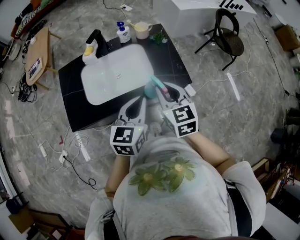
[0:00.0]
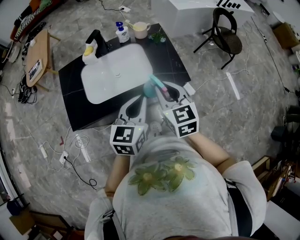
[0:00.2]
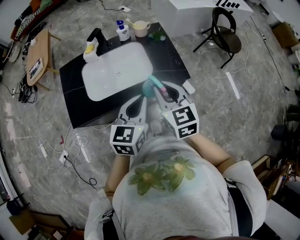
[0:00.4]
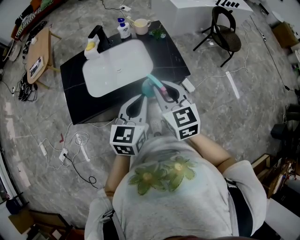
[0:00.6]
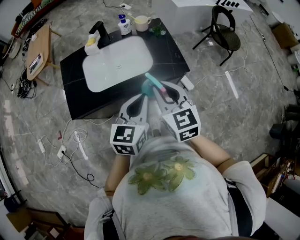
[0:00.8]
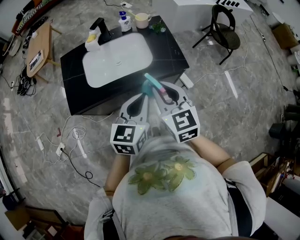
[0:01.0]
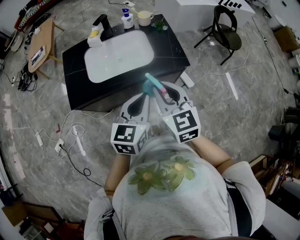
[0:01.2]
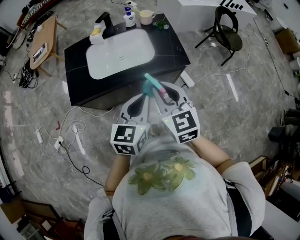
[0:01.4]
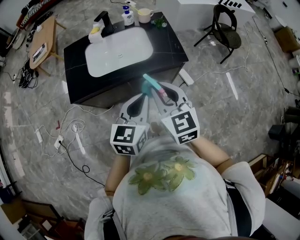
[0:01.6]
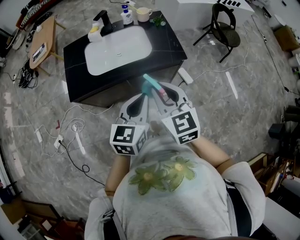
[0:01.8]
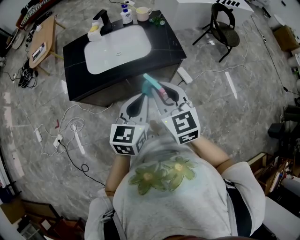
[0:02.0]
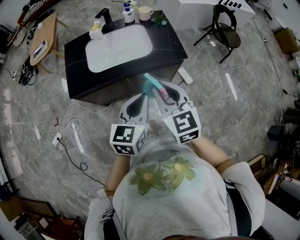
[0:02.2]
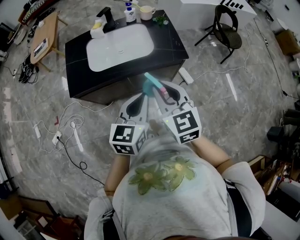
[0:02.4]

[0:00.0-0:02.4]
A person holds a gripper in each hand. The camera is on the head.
0:00.0 to 0:01.2: The left gripper moves backward, roughly 10 cm, while the right gripper travels backward and upward by about 15 cm.
0:01.2 to 0:02.4: The two grippers go some 5 cm backward.

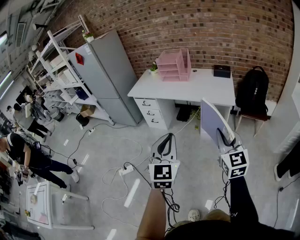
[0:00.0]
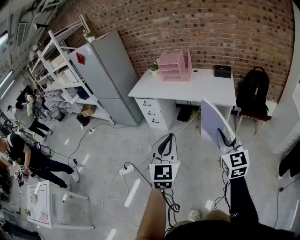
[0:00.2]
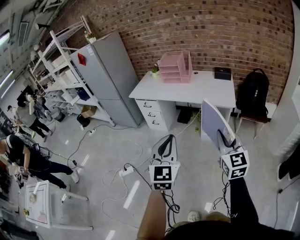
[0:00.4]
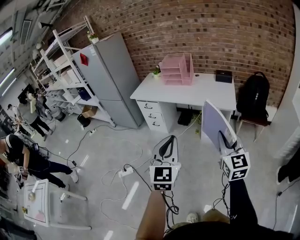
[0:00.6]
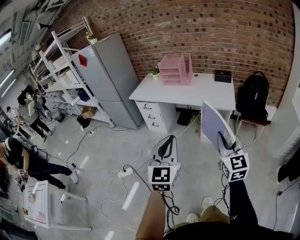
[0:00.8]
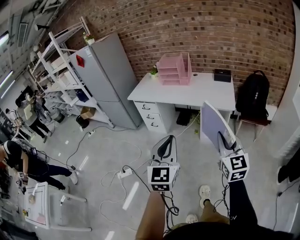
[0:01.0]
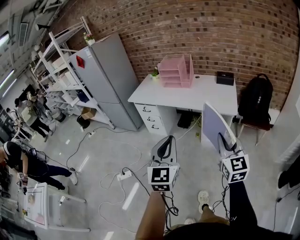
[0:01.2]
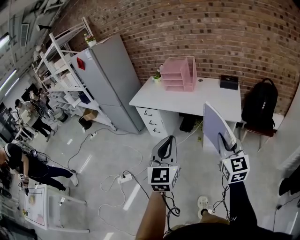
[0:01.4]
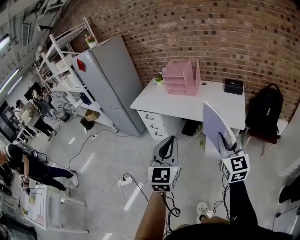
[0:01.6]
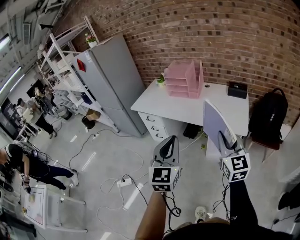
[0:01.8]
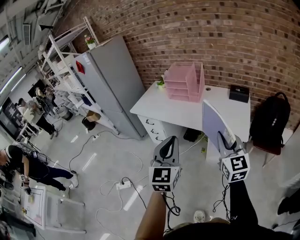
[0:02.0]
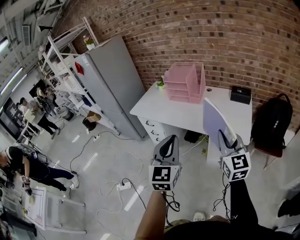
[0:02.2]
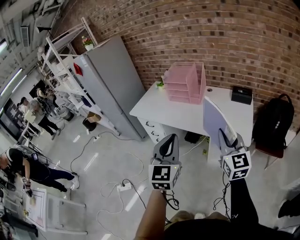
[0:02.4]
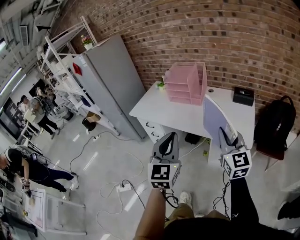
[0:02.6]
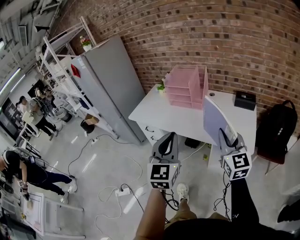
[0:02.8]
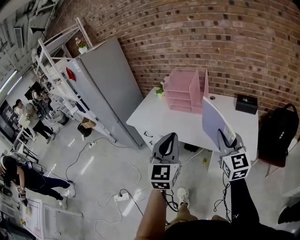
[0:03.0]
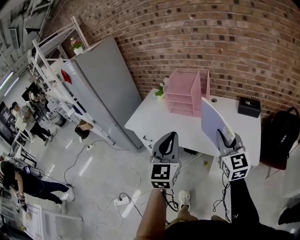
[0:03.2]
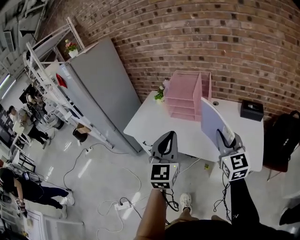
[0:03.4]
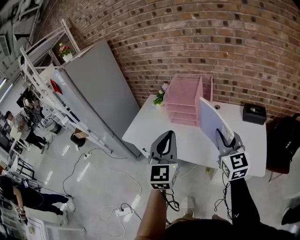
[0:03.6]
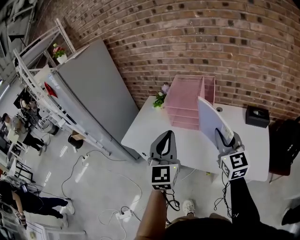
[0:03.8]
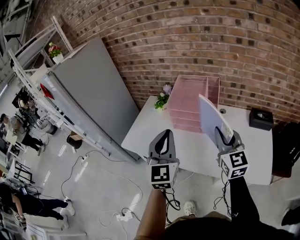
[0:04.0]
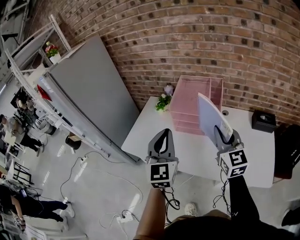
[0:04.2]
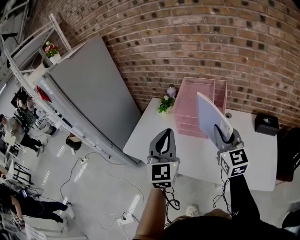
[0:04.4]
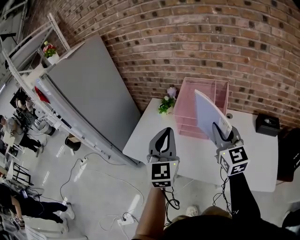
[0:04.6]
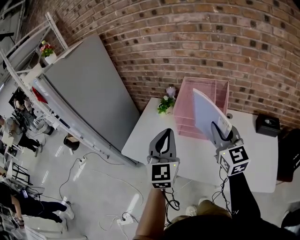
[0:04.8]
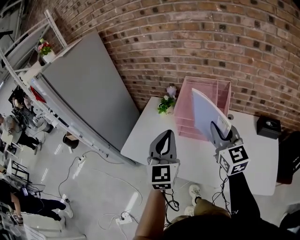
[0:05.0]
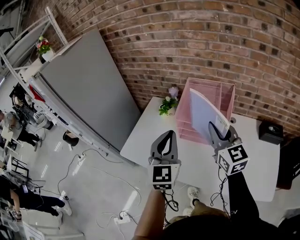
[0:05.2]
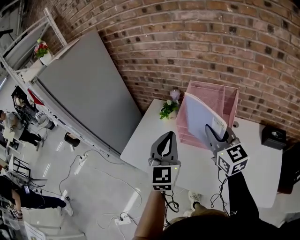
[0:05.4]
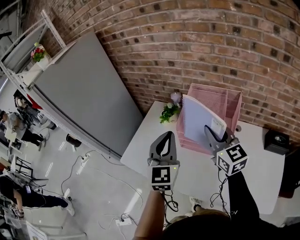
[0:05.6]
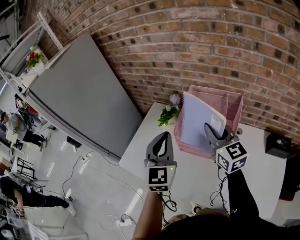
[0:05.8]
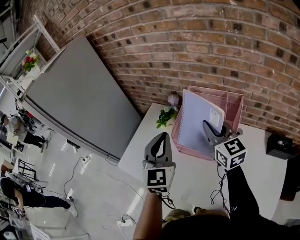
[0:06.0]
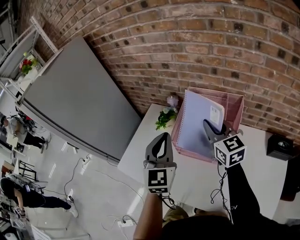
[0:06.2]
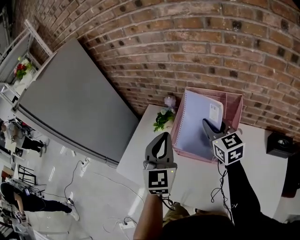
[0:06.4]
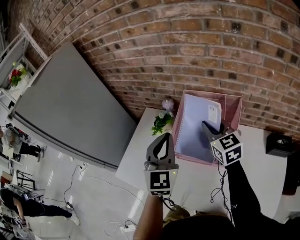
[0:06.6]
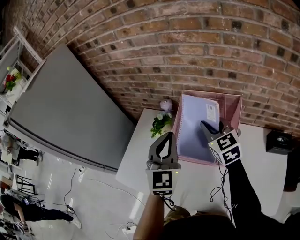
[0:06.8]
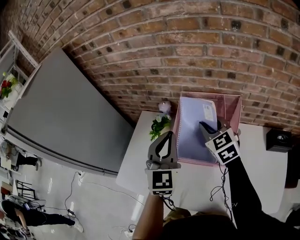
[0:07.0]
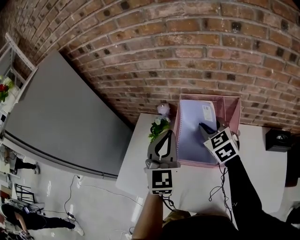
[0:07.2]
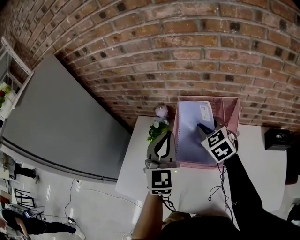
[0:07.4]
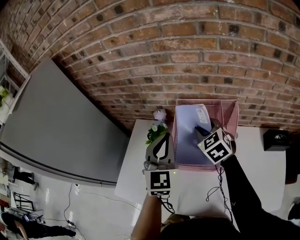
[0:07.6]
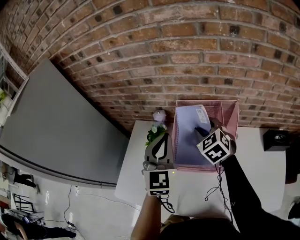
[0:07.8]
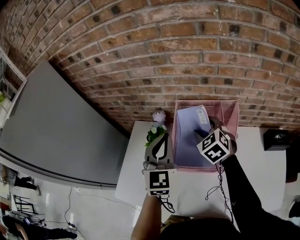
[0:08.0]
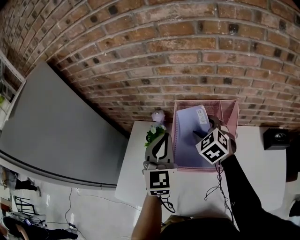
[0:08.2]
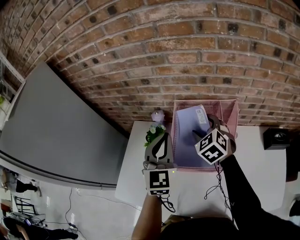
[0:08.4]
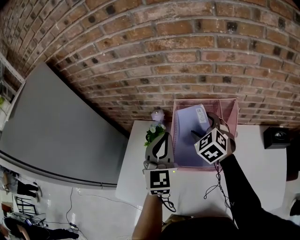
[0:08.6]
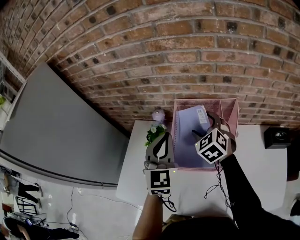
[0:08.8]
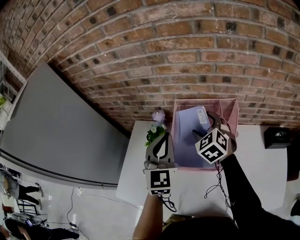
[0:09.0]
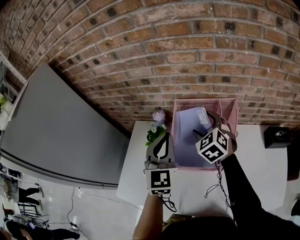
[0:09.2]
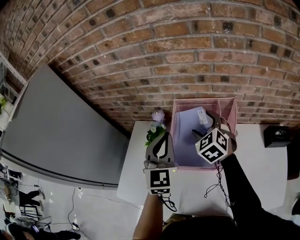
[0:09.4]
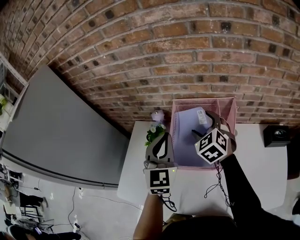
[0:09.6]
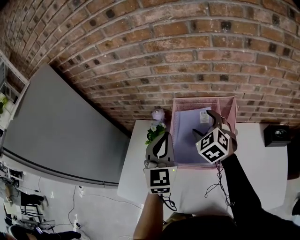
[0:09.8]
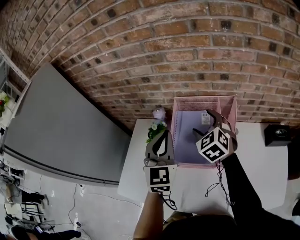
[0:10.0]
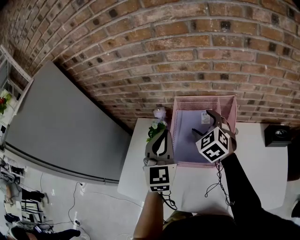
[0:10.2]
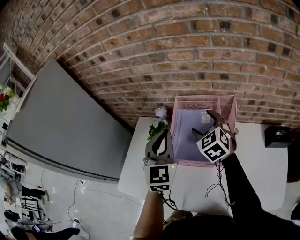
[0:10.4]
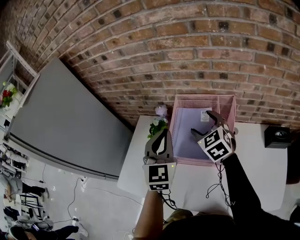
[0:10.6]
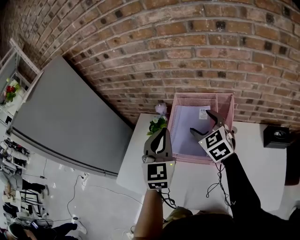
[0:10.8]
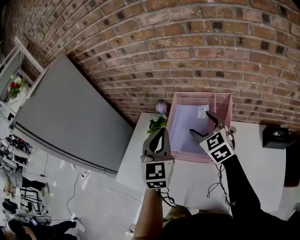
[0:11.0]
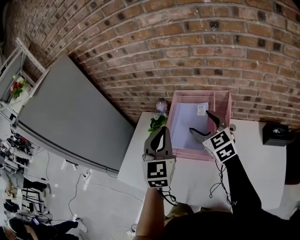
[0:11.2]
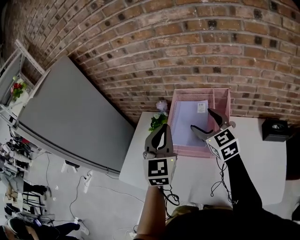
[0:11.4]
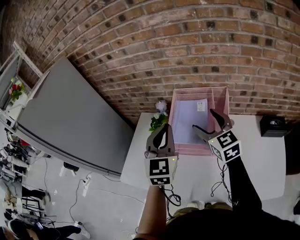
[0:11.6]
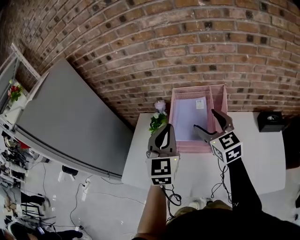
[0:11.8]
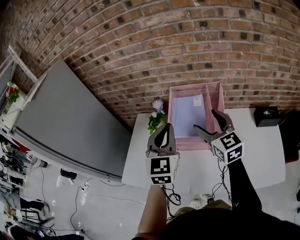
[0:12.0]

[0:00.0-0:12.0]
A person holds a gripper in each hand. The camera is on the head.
0:00.0 to 0:01.6: Both grippers move forward, roughly 20 cm.
0:01.6 to 0:03.0: Both grippers move forward, some 25 cm.
0:03.0 to 0:04.4: Both grippers move forward, about 35 cm.
0:04.4 to 0:06.0: Both grippers travel together forward, roughly 20 cm.
0:06.0 to 0:07.6: The right gripper travels forward and downward by approximately 15 cm, and swivels approximately 40 degrees; the left gripper goes some 10 cm forward.
0:07.6 to 0:09.0: The right gripper opens.
0:09.0 to 0:10.4: The grippers move only a little.
0:10.4 to 0:12.0: The right gripper goes about 15 cm backward and upward, and rotates about 30 degrees, while the left gripper is displaced backward by roughly 10 cm.

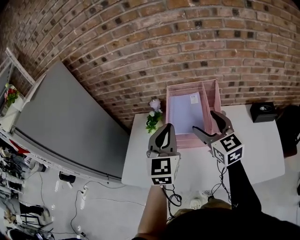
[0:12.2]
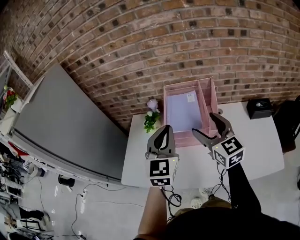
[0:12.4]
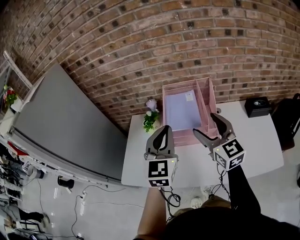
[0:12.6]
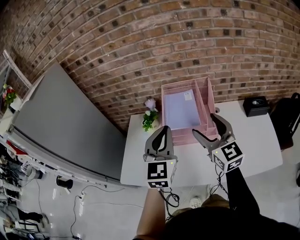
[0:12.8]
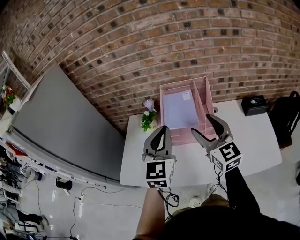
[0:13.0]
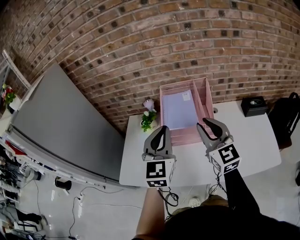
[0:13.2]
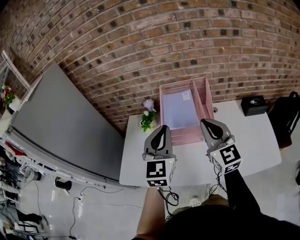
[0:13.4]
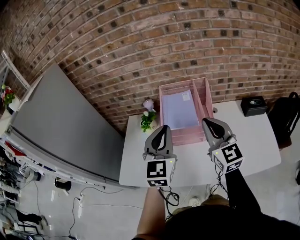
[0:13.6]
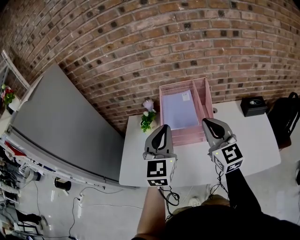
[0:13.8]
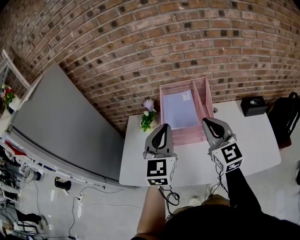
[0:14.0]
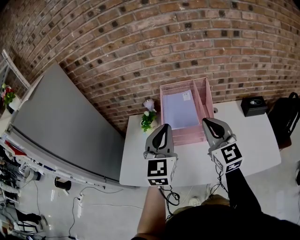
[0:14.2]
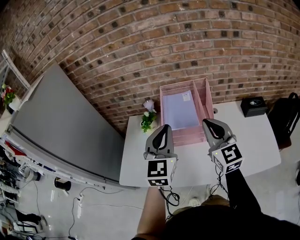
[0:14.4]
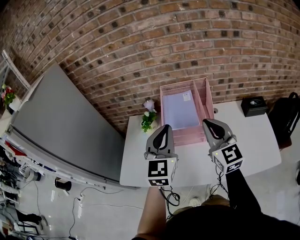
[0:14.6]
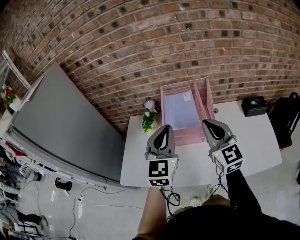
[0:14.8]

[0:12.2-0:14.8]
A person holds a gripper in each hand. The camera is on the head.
0:12.2 to 0:13.4: The right gripper is displaced backward by approximately 5 cm, and closes its fingers.
0:13.4 to 0:14.8: The two grippers keep their place.

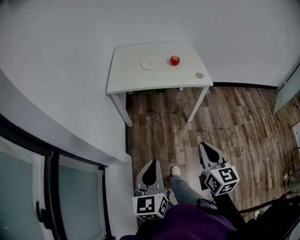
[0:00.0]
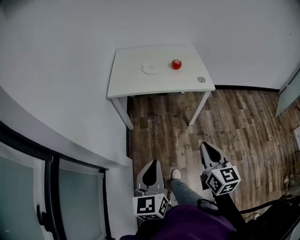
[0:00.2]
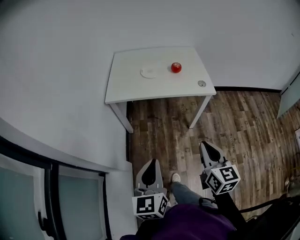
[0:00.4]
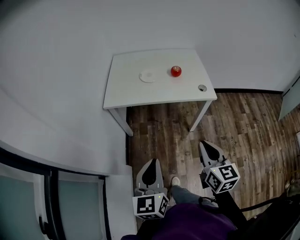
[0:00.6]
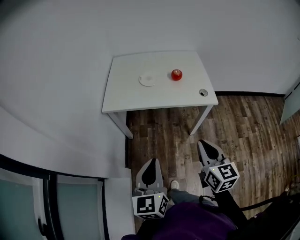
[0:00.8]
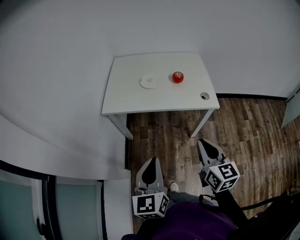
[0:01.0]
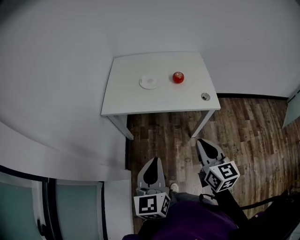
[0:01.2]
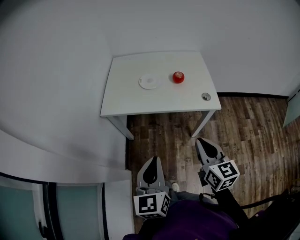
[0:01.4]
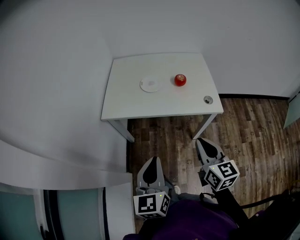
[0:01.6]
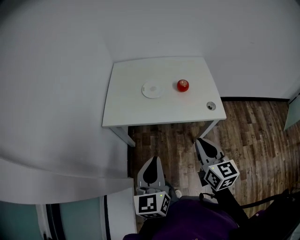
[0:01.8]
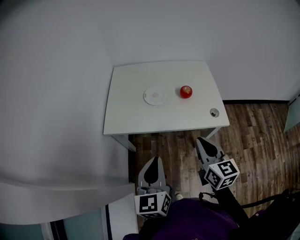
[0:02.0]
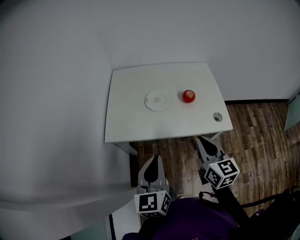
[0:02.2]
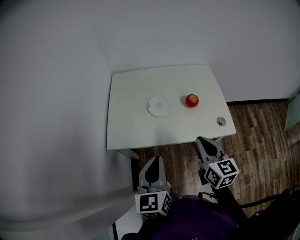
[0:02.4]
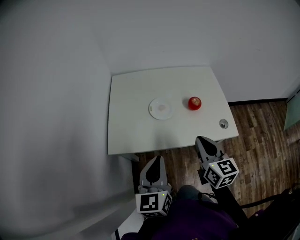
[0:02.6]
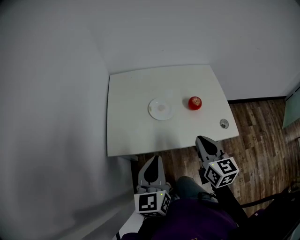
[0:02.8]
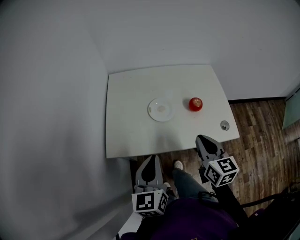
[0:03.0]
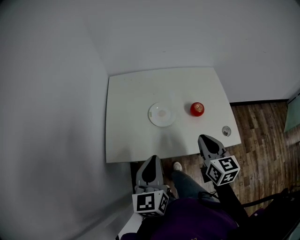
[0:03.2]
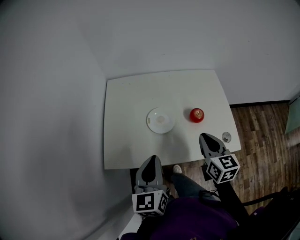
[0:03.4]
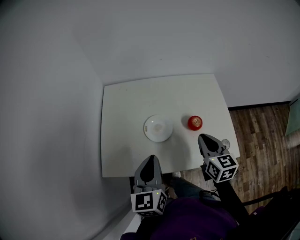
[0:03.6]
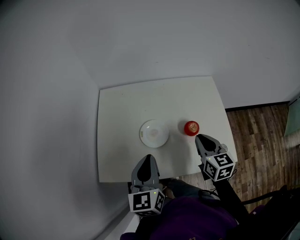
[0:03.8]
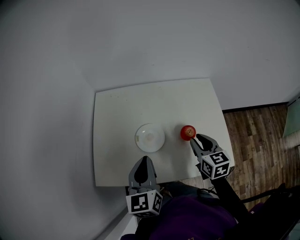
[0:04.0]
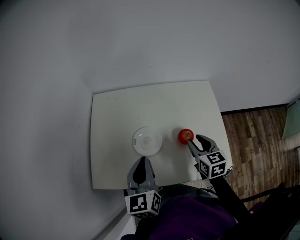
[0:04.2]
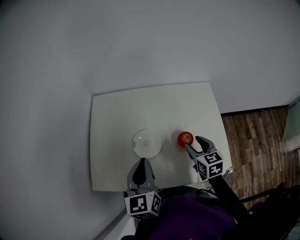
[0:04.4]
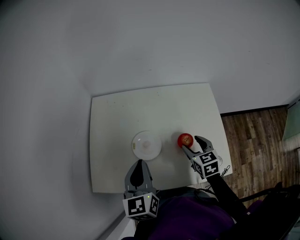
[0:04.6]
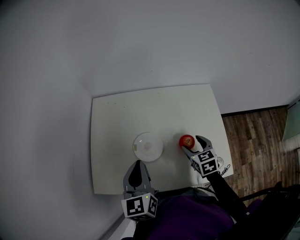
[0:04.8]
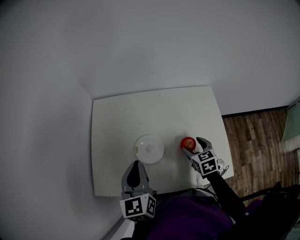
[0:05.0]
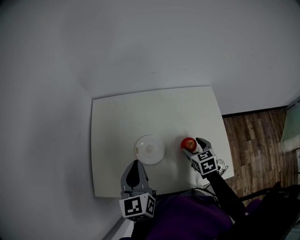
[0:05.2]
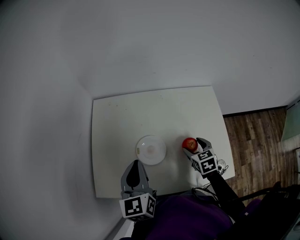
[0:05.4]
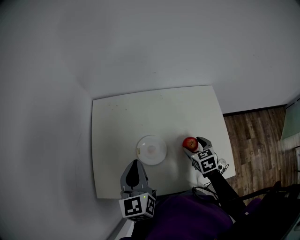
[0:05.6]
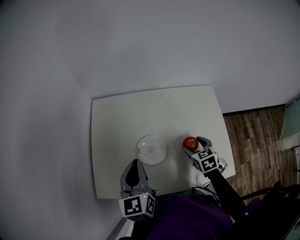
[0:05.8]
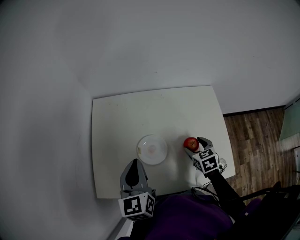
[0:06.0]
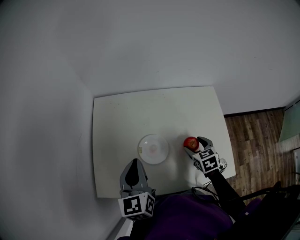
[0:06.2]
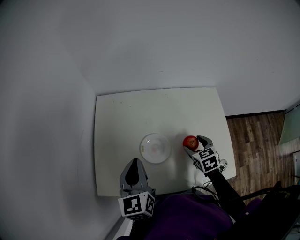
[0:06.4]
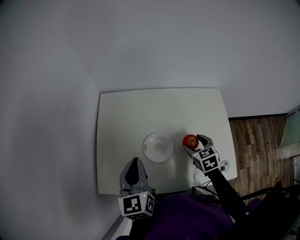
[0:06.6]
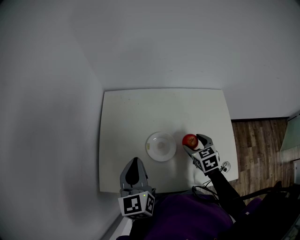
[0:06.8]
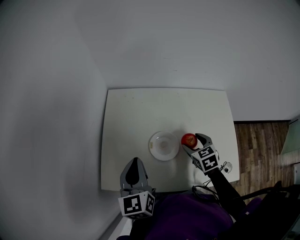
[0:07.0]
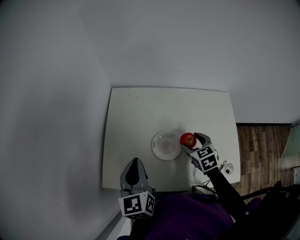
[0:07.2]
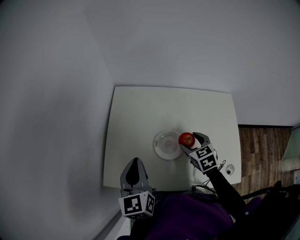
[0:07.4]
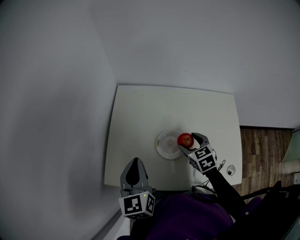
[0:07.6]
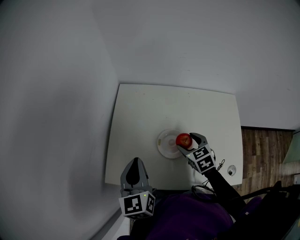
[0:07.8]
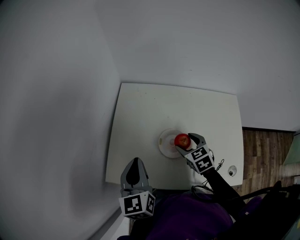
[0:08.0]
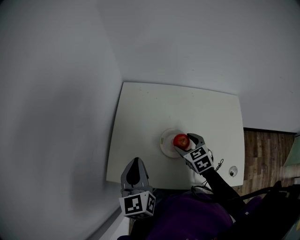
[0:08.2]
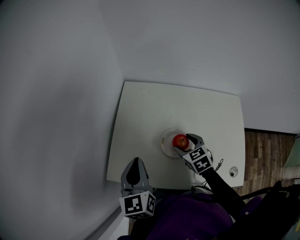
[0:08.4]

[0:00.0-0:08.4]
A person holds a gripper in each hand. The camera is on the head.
0:00.0 to 0:01.4: The right gripper shifts about 20 cm forward. Meanwhile the left gripper is displaced forward and to the right by roughly 20 cm.
0:01.4 to 0:02.8: Both grippers move forward, approximately 25 cm.
0:02.8 to 0:04.2: The left gripper shifts roughly 20 cm forward. The right gripper travels forward, to the right and downward by some 25 cm, and opens up.
0:04.2 to 0:05.6: The left gripper moves forward, about 5 cm; the right gripper moves downward, roughly 10 cm, and opens its fingers.
0:05.6 to 0:07.0: The grippers both shift to the left by roughly 5 cm.
0:07.0 to 0:08.4: The right gripper heads to the left, covering approximately 10 cm.
